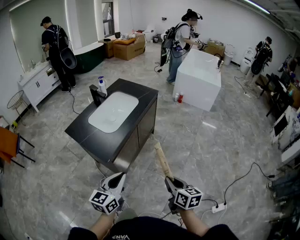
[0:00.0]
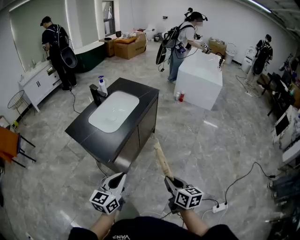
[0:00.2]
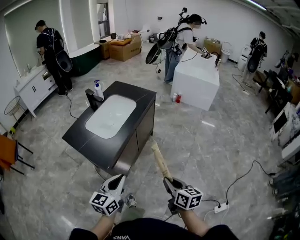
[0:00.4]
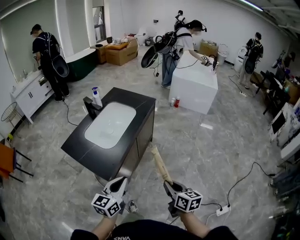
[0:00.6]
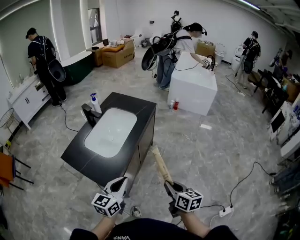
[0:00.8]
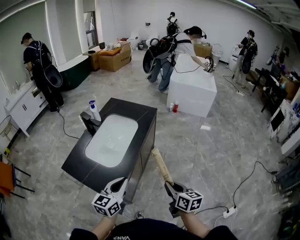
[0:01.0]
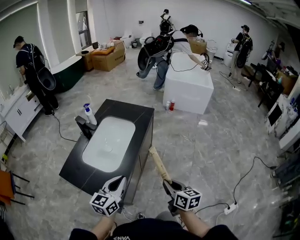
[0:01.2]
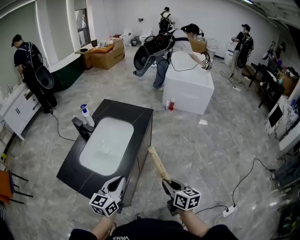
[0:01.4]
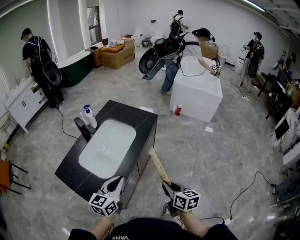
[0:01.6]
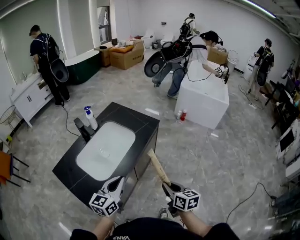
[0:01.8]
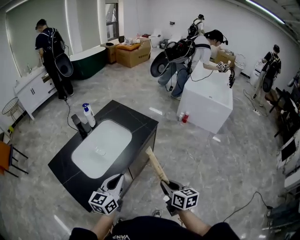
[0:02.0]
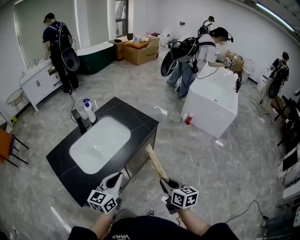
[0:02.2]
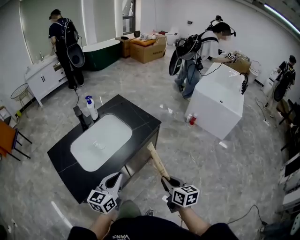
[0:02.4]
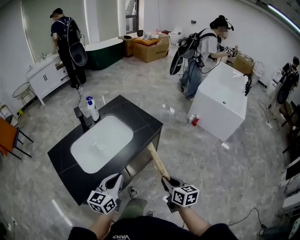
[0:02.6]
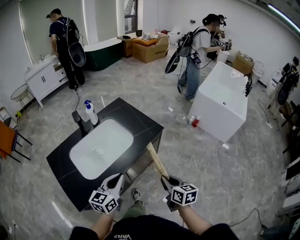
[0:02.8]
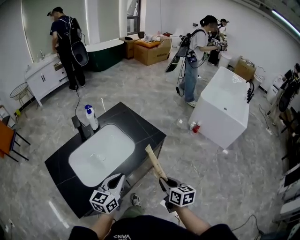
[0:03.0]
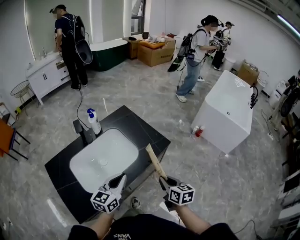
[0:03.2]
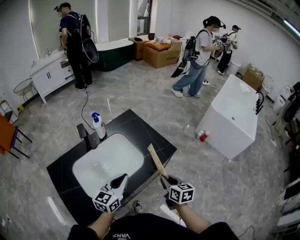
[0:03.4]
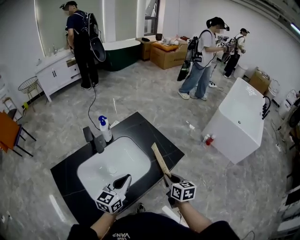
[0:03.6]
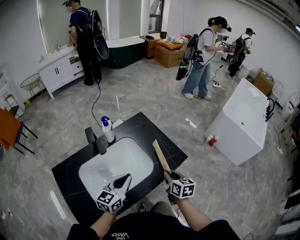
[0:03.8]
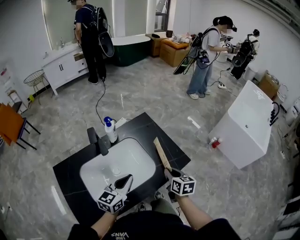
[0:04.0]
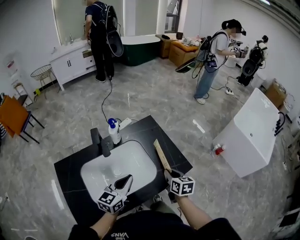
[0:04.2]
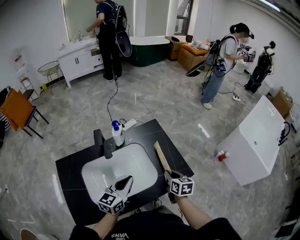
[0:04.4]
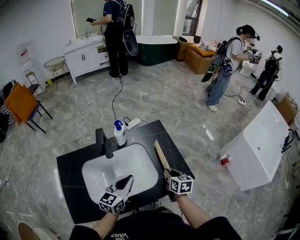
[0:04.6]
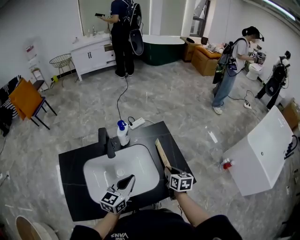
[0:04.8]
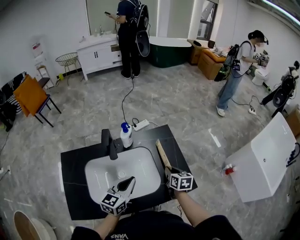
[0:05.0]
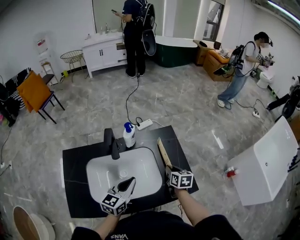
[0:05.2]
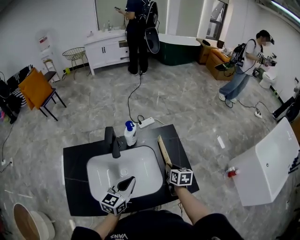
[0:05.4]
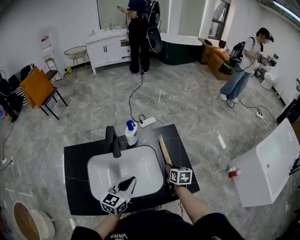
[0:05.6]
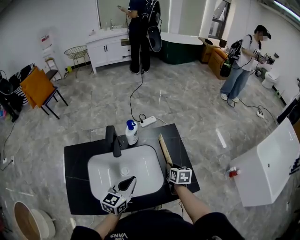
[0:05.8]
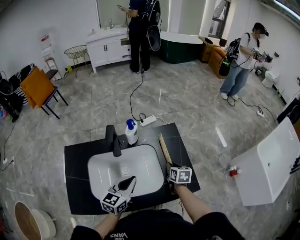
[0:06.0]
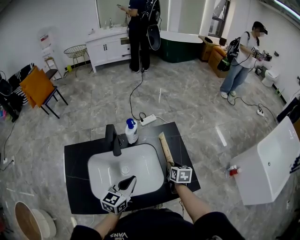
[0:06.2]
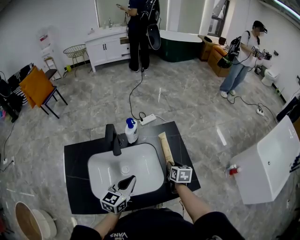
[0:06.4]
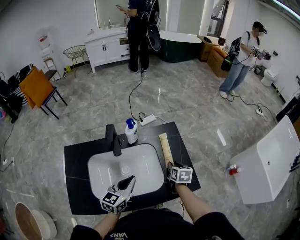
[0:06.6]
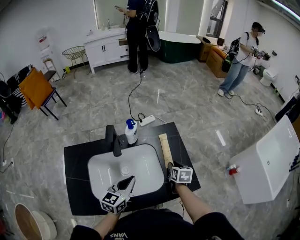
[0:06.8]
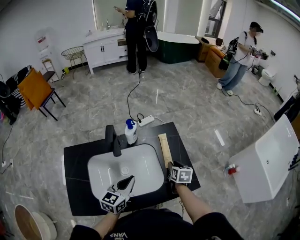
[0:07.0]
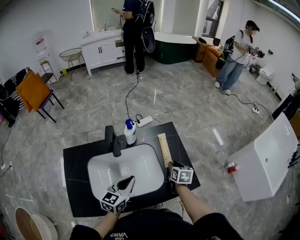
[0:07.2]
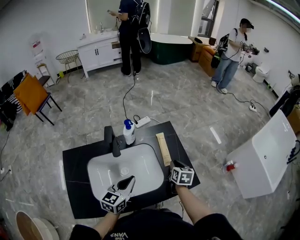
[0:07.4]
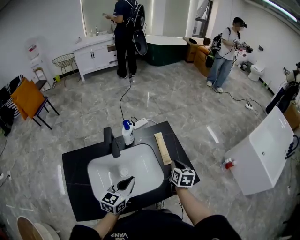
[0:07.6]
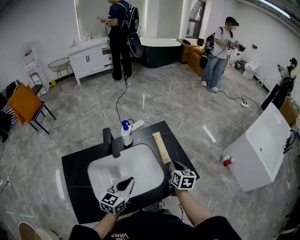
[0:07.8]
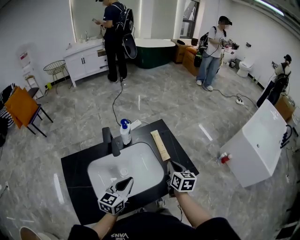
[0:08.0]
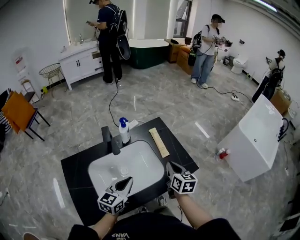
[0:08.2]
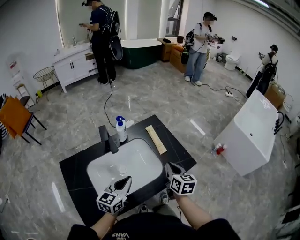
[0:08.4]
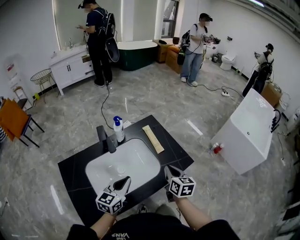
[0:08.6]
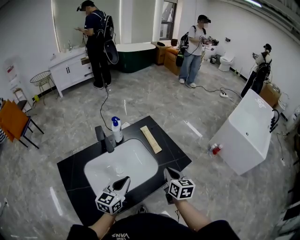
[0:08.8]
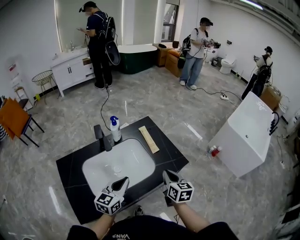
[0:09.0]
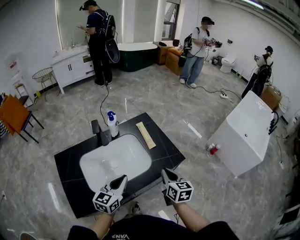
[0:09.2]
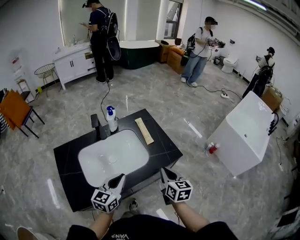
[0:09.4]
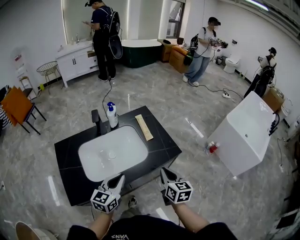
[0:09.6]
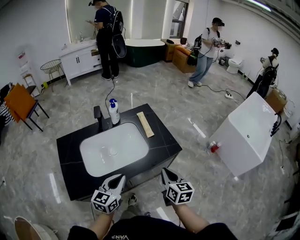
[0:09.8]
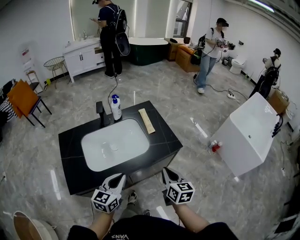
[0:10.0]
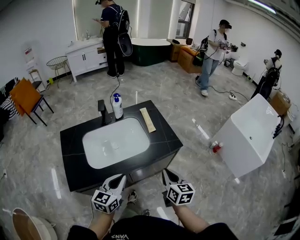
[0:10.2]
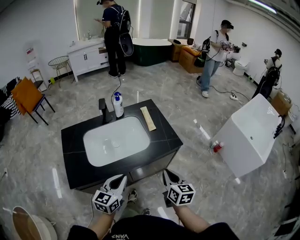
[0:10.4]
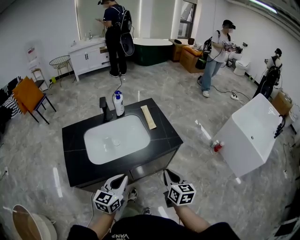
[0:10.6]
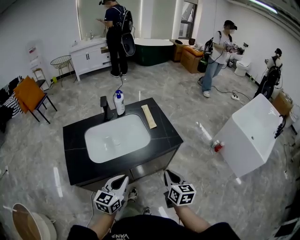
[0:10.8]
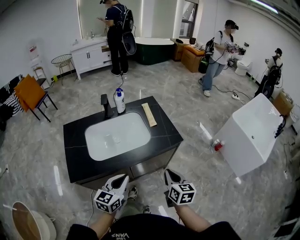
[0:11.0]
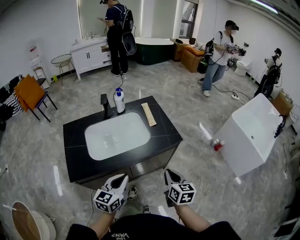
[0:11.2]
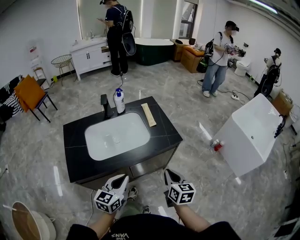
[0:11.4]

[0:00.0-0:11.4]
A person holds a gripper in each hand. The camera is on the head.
0:00.0 to 0:01.4: Both grippers travel together forward, about 25 cm.
0:01.4 to 0:02.8: The right gripper heads forward and to the right, covering some 25 cm, and swivels roughly 20 degrees. The left gripper shifts about 20 cm to the right and forward, and rotates approximately 20 degrees.
0:02.8 to 0:04.2: Both grippers travel together forward, roughly 25 cm.
0:04.2 to 0:05.6: The right gripper travels forward by roughly 15 cm.
0:05.6 to 0:07.2: The grippers stay close to where they were, moving slightly.
0:07.2 to 0:08.6: The right gripper is displaced backward and upward by about 20 cm, swivels roughly 20 degrees, and closes. The left gripper heads backward, covering roughly 5 cm.
0:08.6 to 0:10.0: Both grippers travel together backward and to the right, some 15 cm.
0:10.0 to 0:11.4: The two grippers go about 5 cm backward.

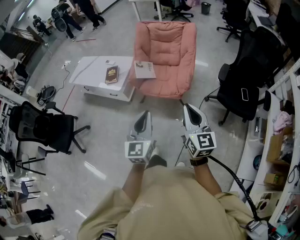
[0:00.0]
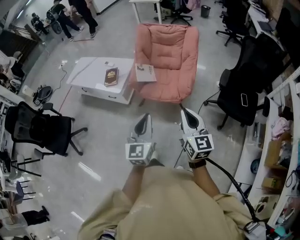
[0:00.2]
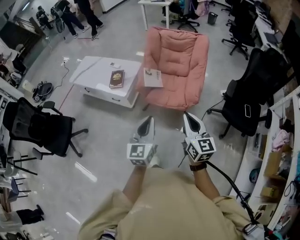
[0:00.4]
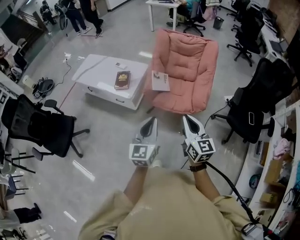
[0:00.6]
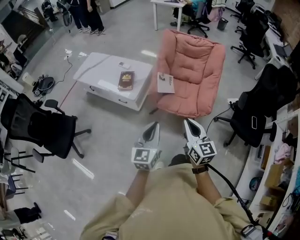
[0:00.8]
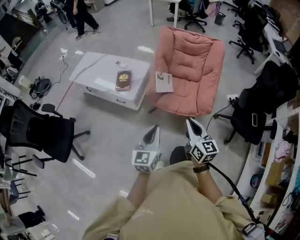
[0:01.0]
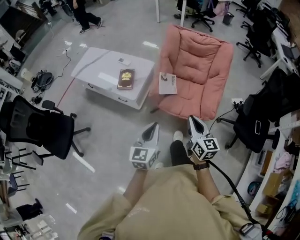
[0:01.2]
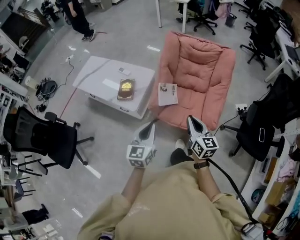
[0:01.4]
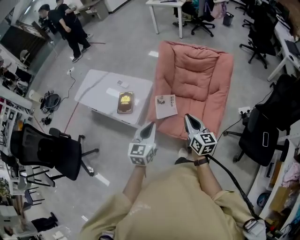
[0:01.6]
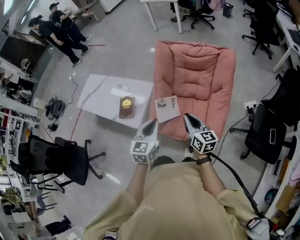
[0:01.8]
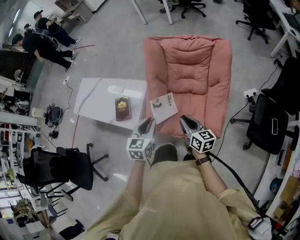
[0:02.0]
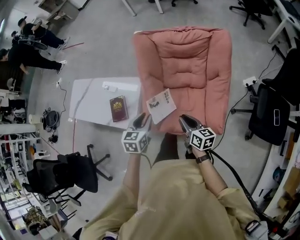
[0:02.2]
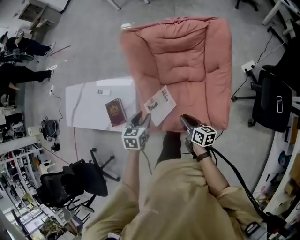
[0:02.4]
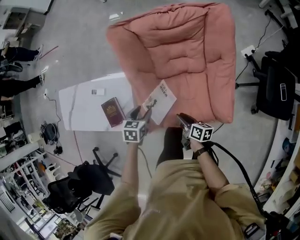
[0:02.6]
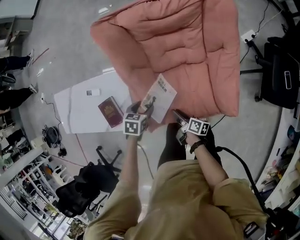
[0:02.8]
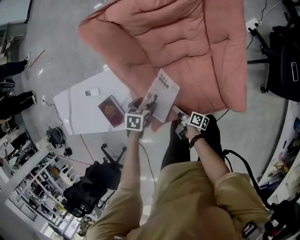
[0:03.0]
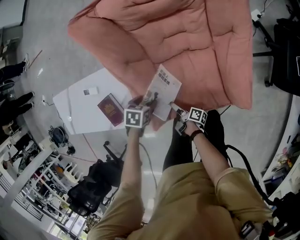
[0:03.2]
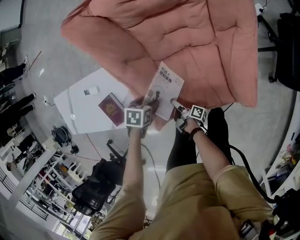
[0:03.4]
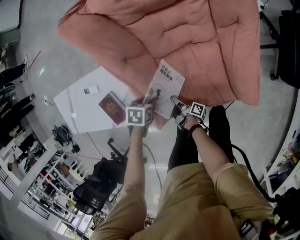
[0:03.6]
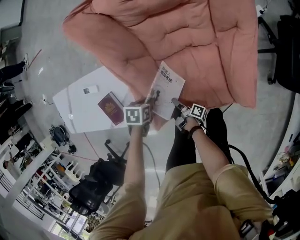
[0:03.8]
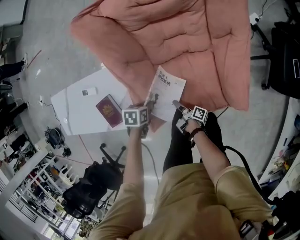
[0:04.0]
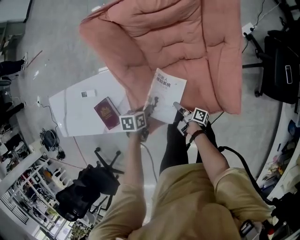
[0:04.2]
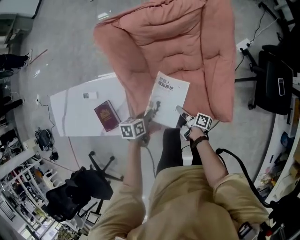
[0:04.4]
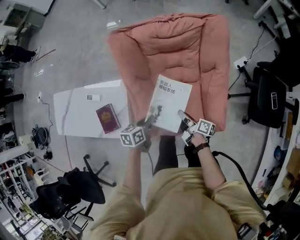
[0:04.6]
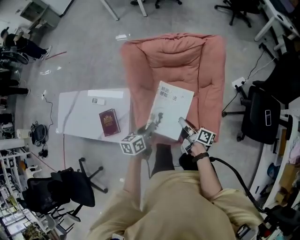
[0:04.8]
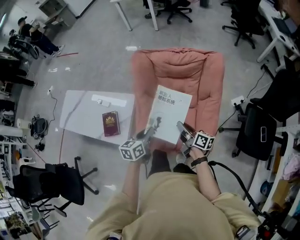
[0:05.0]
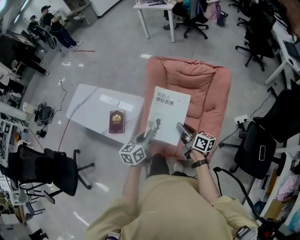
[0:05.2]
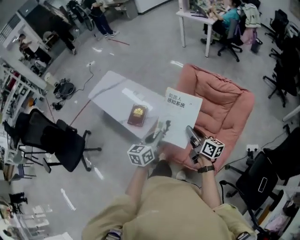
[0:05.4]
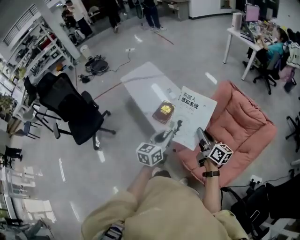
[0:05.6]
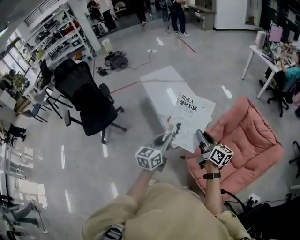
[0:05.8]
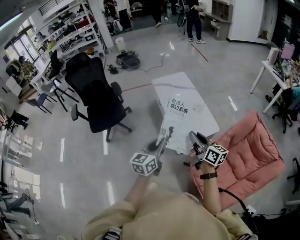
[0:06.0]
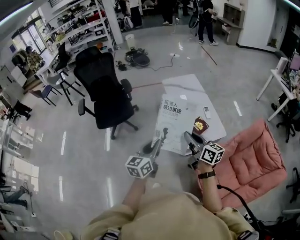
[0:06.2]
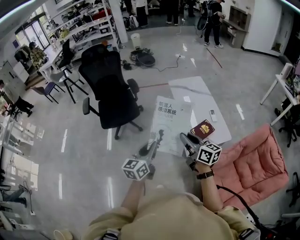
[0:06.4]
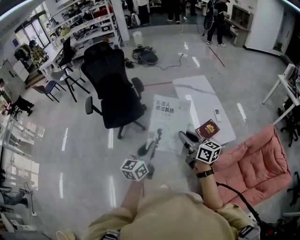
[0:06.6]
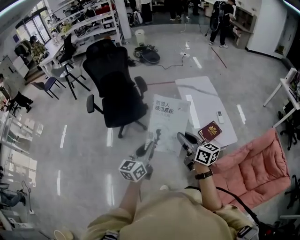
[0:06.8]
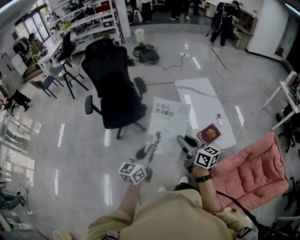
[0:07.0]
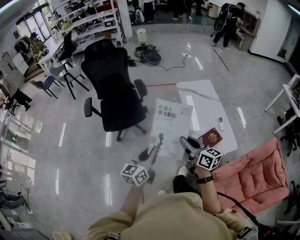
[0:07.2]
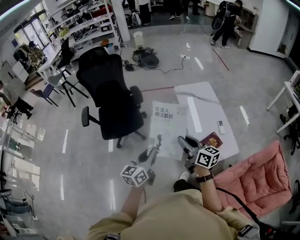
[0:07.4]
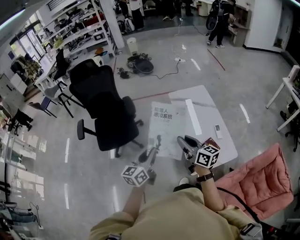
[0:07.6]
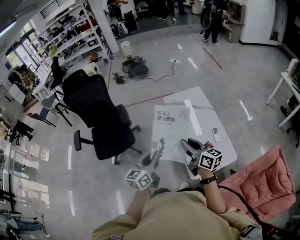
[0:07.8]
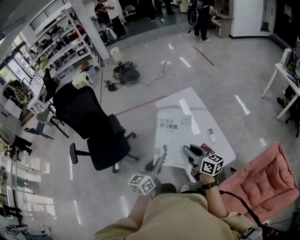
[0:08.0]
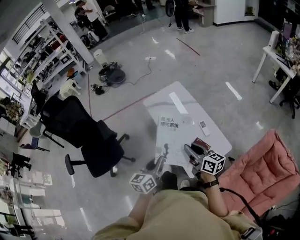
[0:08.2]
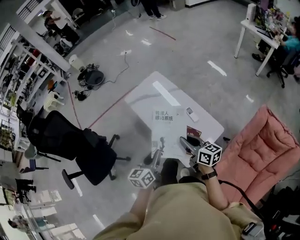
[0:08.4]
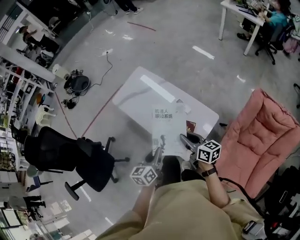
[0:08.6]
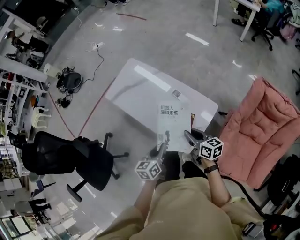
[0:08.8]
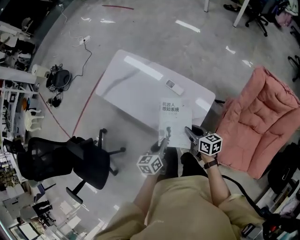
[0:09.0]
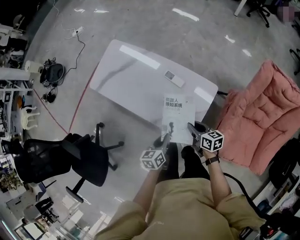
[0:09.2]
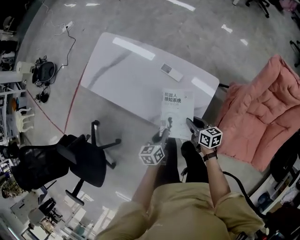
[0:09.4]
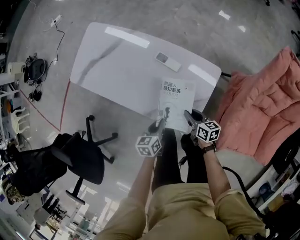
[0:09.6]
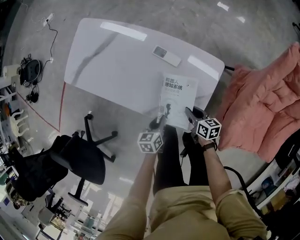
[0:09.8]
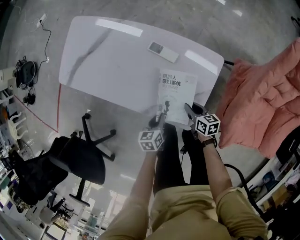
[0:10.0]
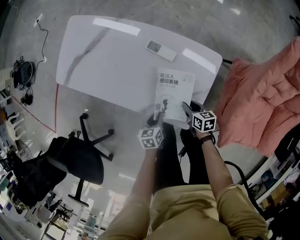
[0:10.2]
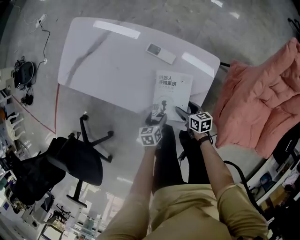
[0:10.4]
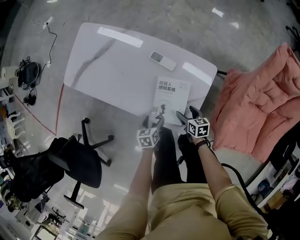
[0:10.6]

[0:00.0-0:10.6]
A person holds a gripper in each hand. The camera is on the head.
0:00.0 to 0:01.6: Both grippers are carried forward, some 50 cm. The right gripper rotates about 20 degrees.
0:01.6 to 0:03.0: The two grippers go about 40 cm downward. The right gripper rotates around the line of its fingers by approximately 80 degrees, clockwise from behind, and opens, while the left gripper angles its fingers downward, by roughly 50 degrees, and opens.
0:03.0 to 0:04.6: Both grippers travel together upward, approximately 15 cm. The left gripper tips its fingers upward by some 30 degrees, and closes its fingers. The right gripper swivels about 20 degrees, and closes.
0:04.6 to 0:06.0: Both grippers are carried approximately 50 cm. The left gripper tilts its fingers roughly 30 degrees upward. The right gripper turns by about 80 degrees.
0:06.0 to 0:07.6: The grippers both shift forward and to the left by about 30 cm.
0:07.6 to 0:09.0: The right gripper moves some 50 cm, and rotates roughly 50 degrees. Meanwhile the left gripper changes place by roughly 50 cm, and rotates about 50 degrees.
0:09.0 to 0:10.6: Both grippers travel together downward, roughly 30 cm. The left gripper swivels roughly 20 degrees, and opens up. Meanwhile the right gripper turns by roughly 20 degrees, and opens its fingers.

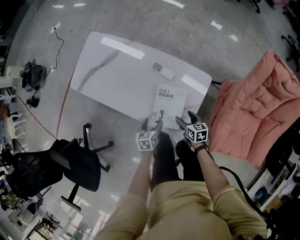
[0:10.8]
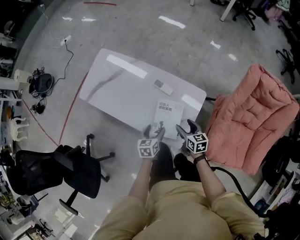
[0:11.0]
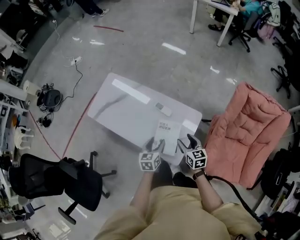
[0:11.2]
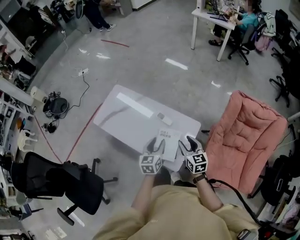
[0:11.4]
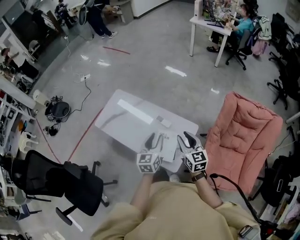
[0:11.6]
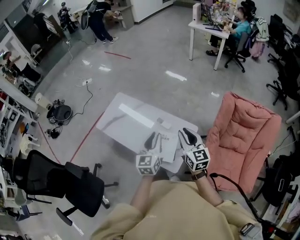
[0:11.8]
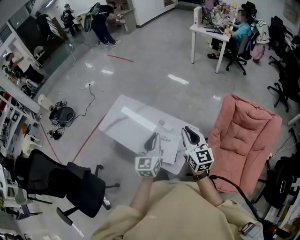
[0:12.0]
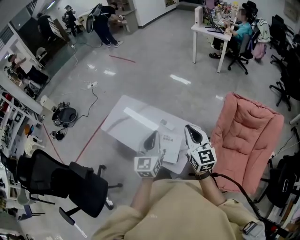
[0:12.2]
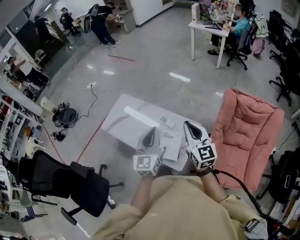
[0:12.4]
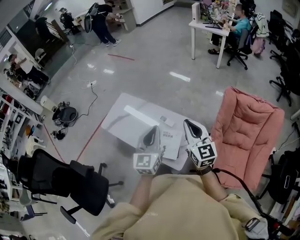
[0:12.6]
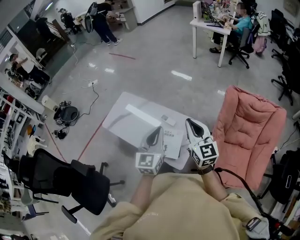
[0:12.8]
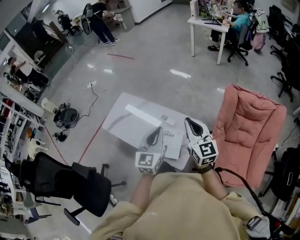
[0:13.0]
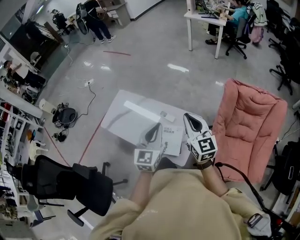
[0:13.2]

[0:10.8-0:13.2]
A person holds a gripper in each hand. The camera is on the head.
0:10.8 to 0:12.0: The two grippers go about 50 cm upward. The right gripper tips its fingers upward by roughly 40 degrees, and closes its fingers; the left gripper tips its fingers upward by roughly 40 degrees, and closes.
0:12.0 to 0:13.2: There are only small adjustments of the grippers.
